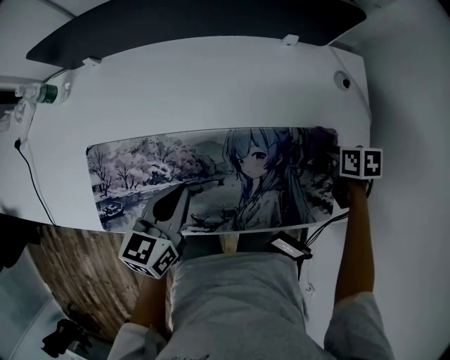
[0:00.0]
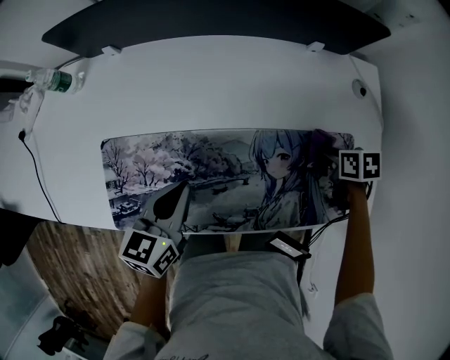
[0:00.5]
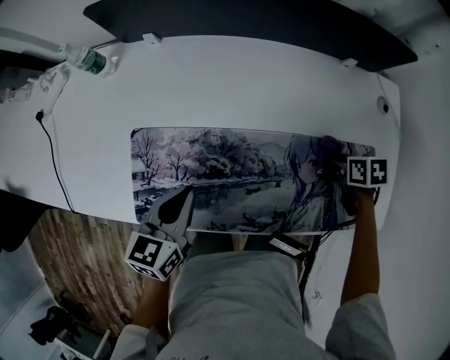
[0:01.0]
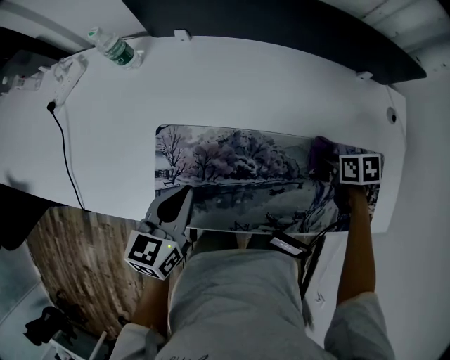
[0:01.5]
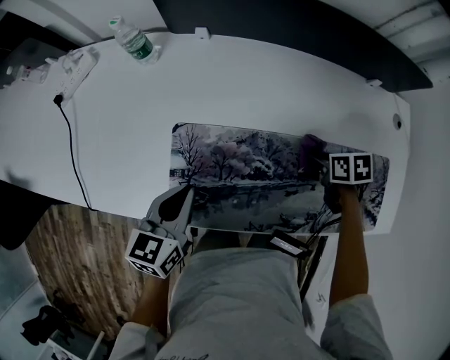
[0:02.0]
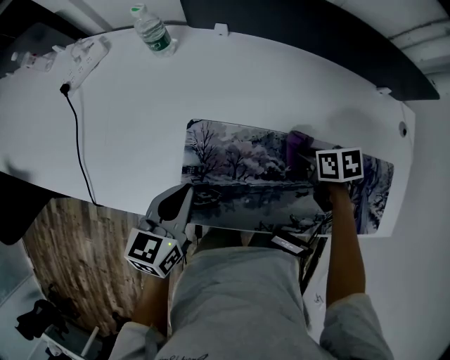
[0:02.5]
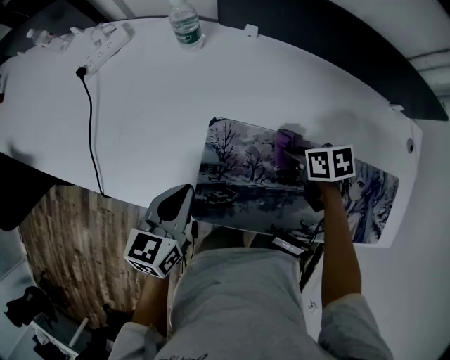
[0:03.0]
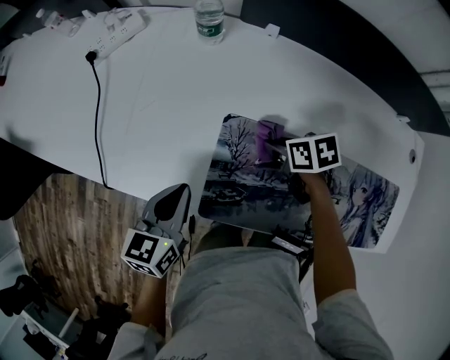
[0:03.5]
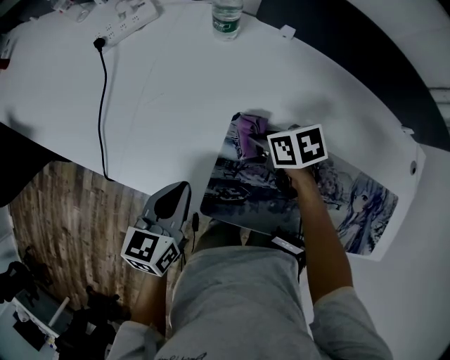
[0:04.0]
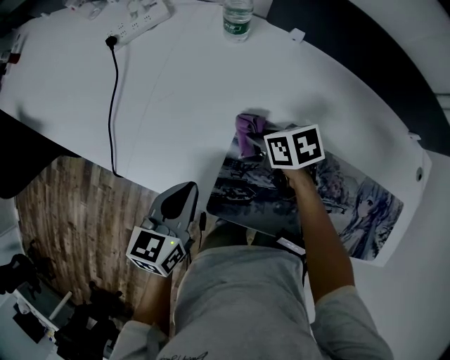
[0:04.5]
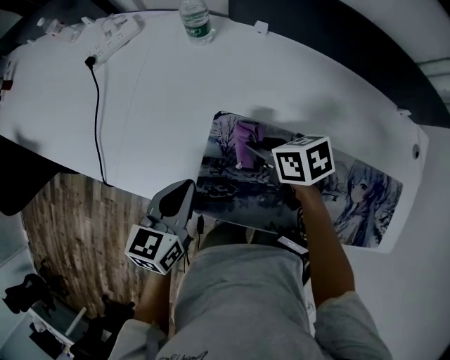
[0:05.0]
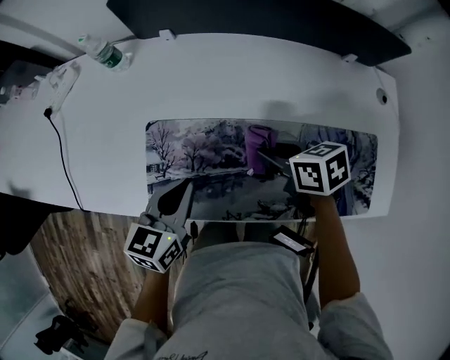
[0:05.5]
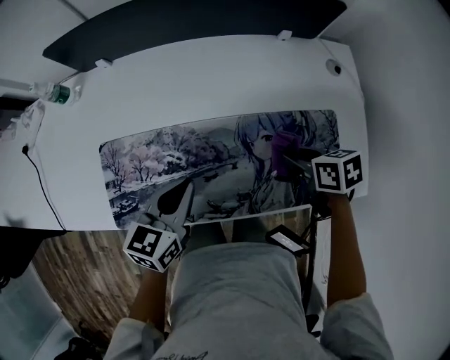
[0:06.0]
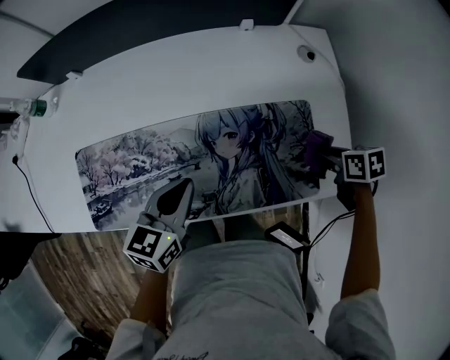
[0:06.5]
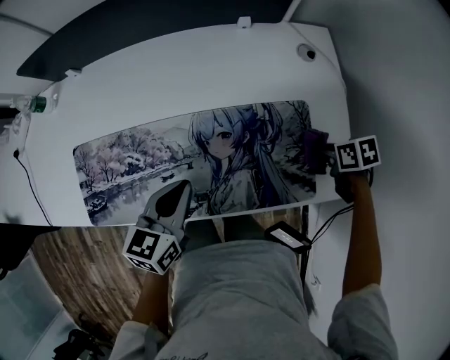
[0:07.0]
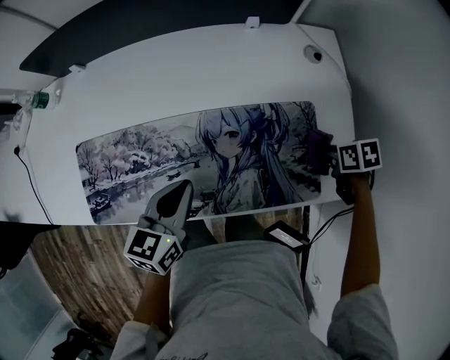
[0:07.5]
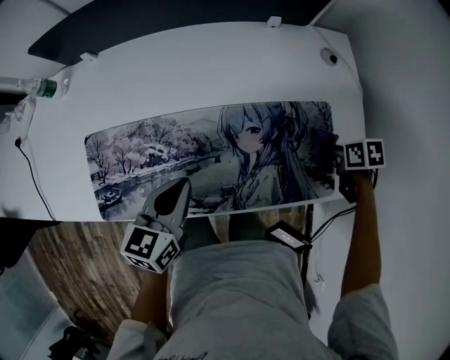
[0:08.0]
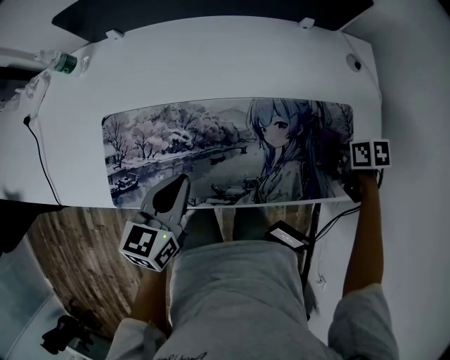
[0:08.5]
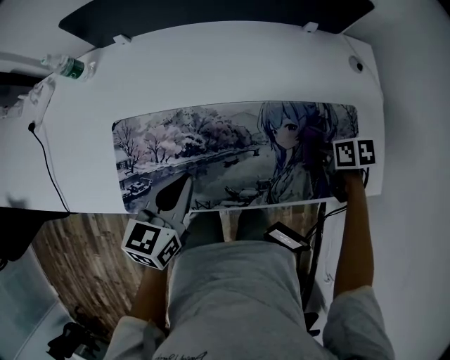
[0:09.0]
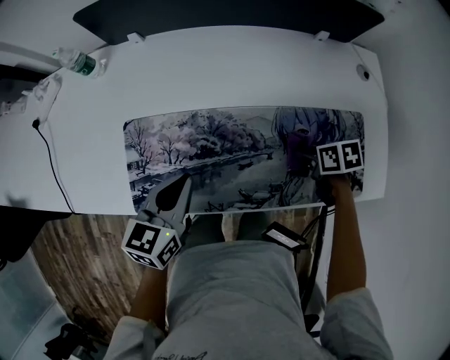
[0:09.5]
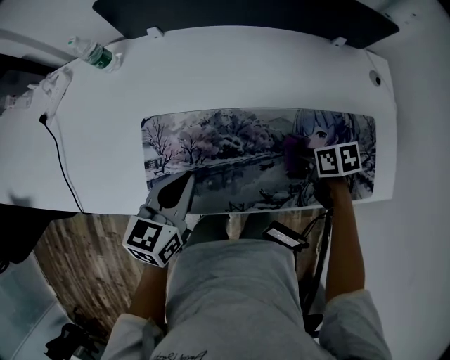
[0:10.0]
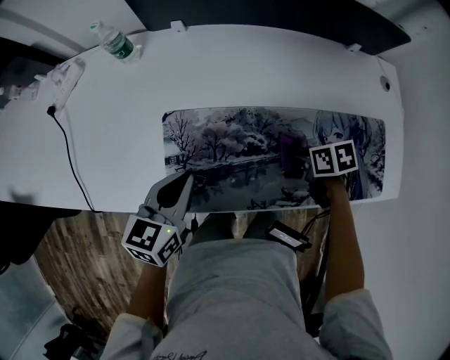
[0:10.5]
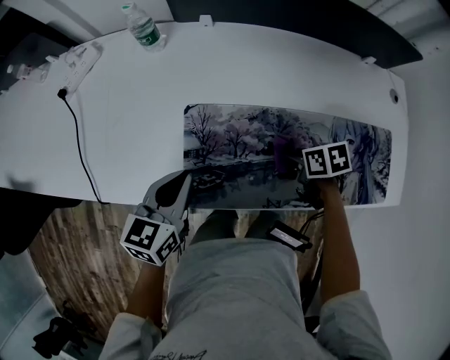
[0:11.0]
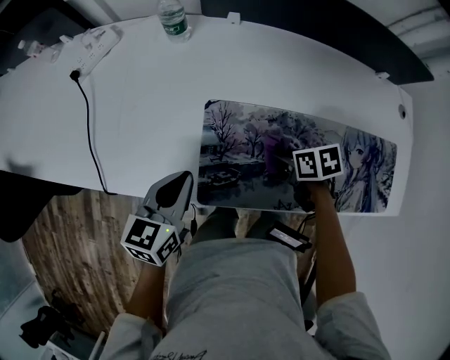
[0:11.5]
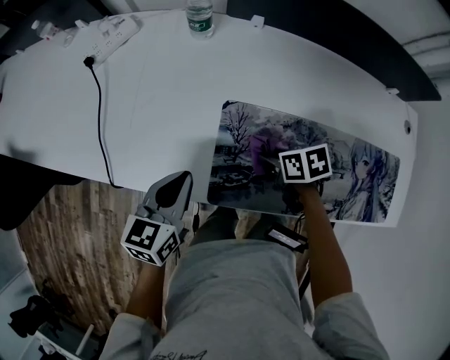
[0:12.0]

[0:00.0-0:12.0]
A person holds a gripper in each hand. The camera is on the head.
0:00.0 to 0:02.0: The two grippers go some 30 cm to the left.
0:02.0 to 0:04.0: The left gripper shifts roughly 15 cm to the left. Meanwhile the right gripper goes about 35 cm to the left and forward, and turns by approximately 30 degrees.
0:04.0 to 0:06.0: The left gripper shifts by approximately 40 cm, and swivels approximately 30 degrees. The right gripper ends up roughly 50 cm from where it was, and swivels roughly 30 degrees.
0:06.0 to 0:08.0: The right gripper shifts approximately 20 cm to the right and downward; the left gripper goes to the right and returns, some 10 cm each way.
0:08.0 to 0:10.0: The left gripper is displaced to the left by roughly 20 cm. Meanwhile the right gripper travels to the left by roughly 30 cm.
0:10.0 to 0:12.0: The two grippers go some 25 cm to the left.

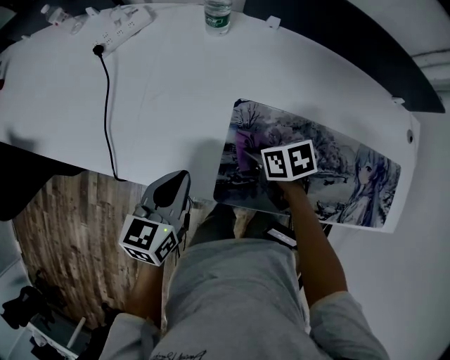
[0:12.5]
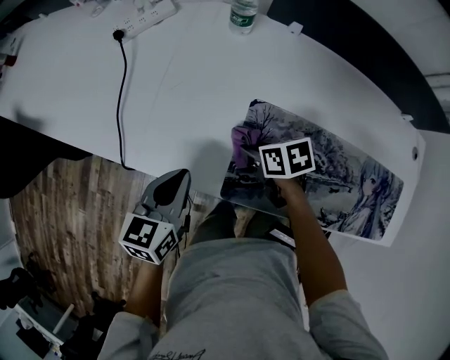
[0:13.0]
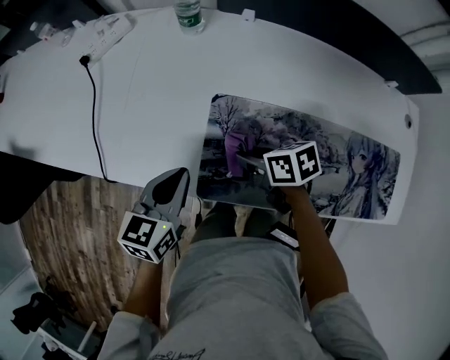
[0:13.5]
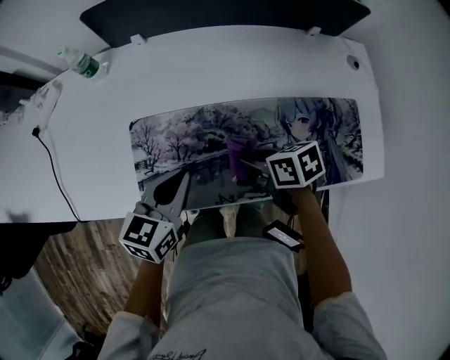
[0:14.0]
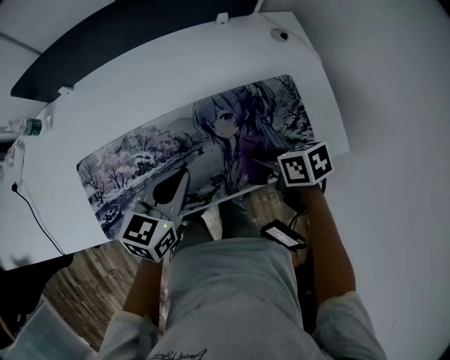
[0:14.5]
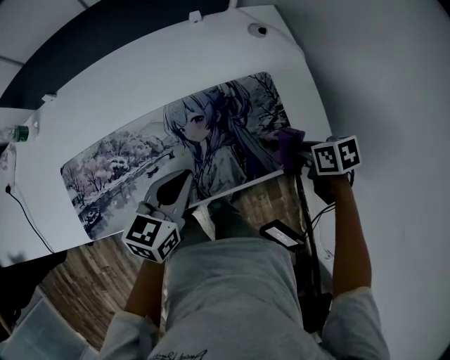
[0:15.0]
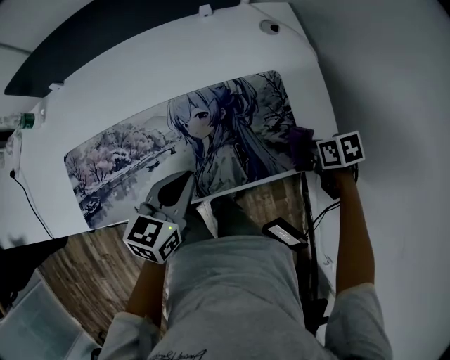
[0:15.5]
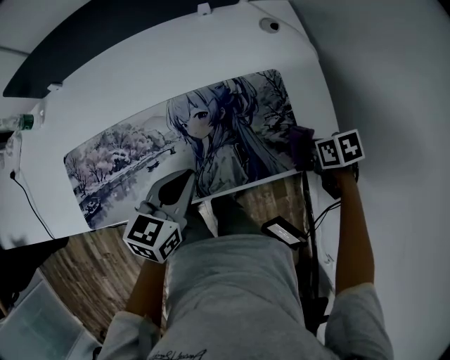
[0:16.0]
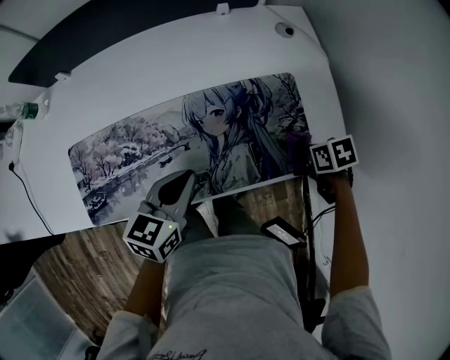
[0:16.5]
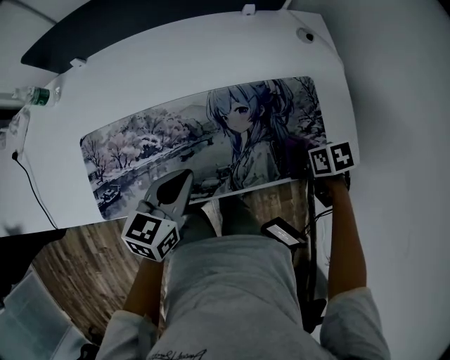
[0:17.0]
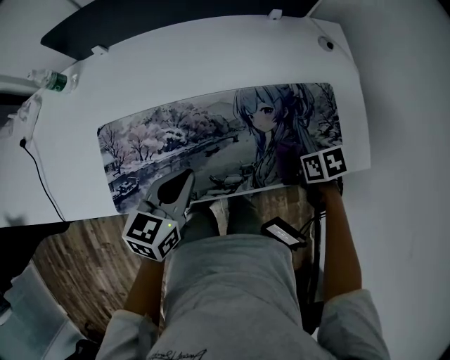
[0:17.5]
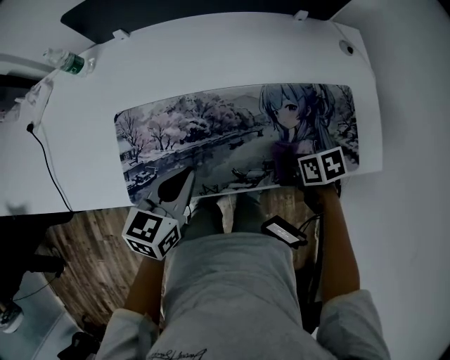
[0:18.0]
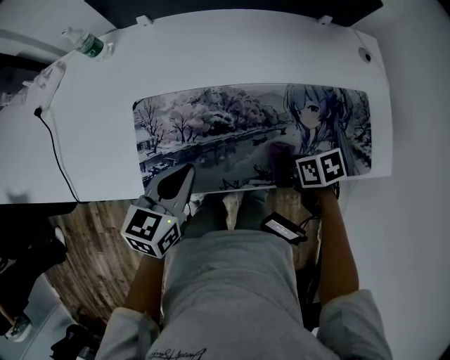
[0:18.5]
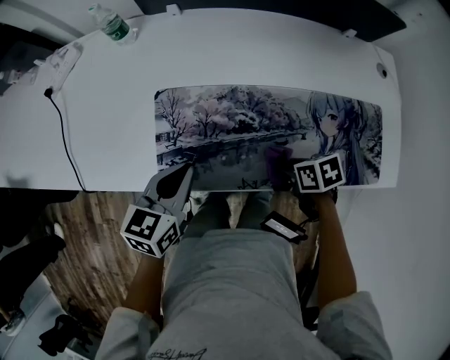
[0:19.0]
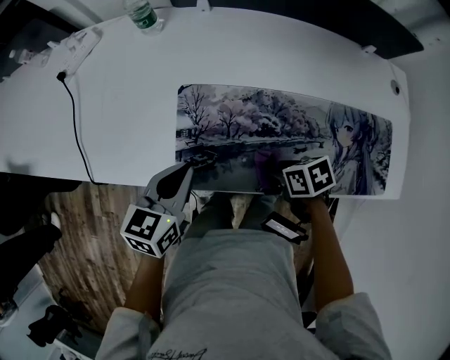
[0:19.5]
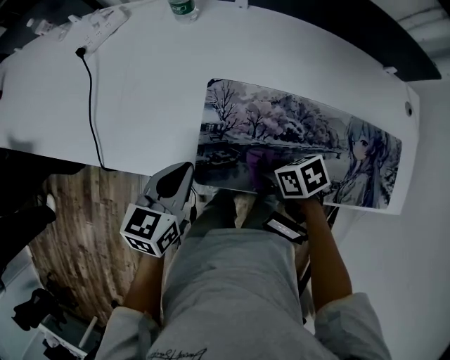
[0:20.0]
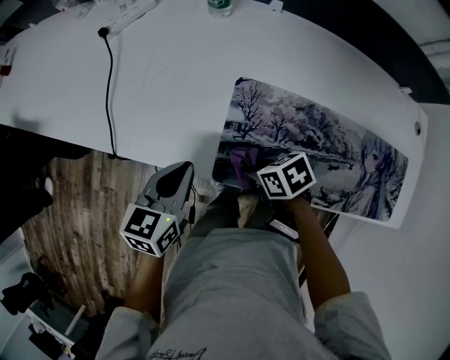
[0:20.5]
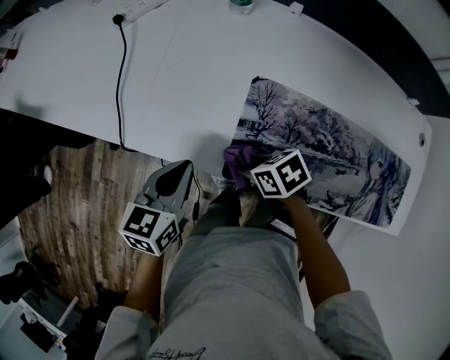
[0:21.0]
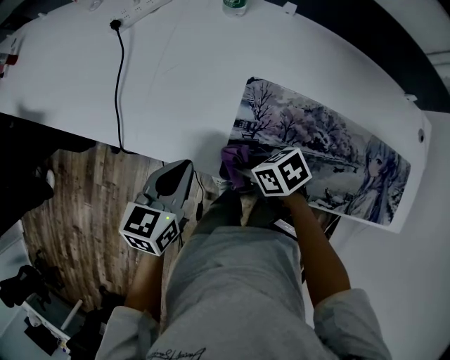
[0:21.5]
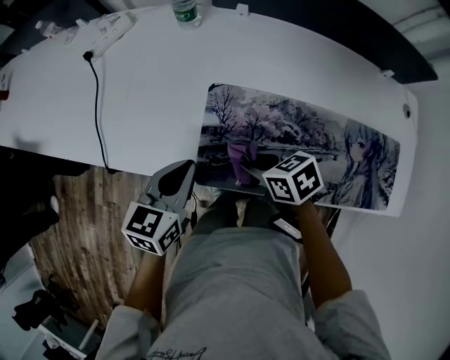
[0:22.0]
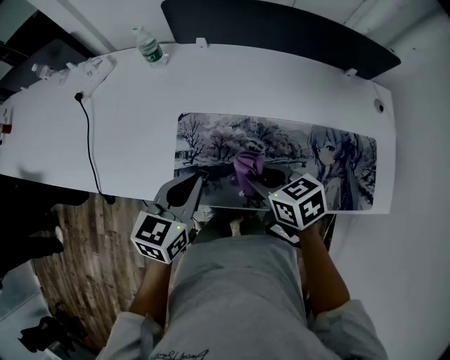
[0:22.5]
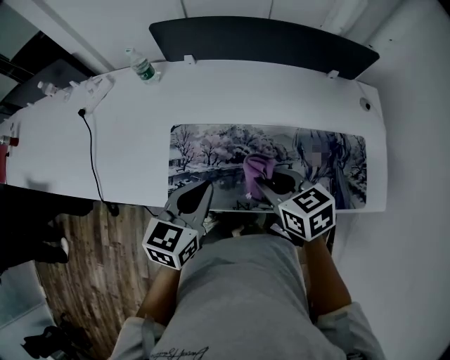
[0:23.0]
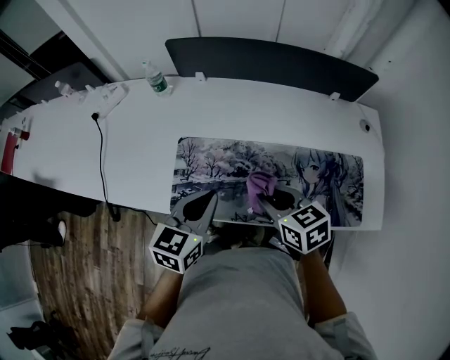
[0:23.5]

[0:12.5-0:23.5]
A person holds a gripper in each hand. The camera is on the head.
0:12.5 to 0:14.5: Both grippers are carried roughly 50 cm. The left gripper turns by roughly 30 degrees. The right gripper turns by approximately 30 degrees.
0:14.5 to 0:16.0: The right gripper travels to the right by approximately 25 cm, while the left gripper moves to the right, some 10 cm.
0:16.0 to 0:18.0: The two grippers go approximately 25 cm to the left.
0:18.0 to 0:20.0: The right gripper travels to the left and forward by approximately 30 cm, and turns by about 20 degrees; the left gripper moves to the left, roughly 25 cm.
0:20.0 to 0:21.5: The left gripper moves to the left, about 10 cm; the right gripper travels to the left and forward by about 15 cm.
0:21.5 to 0:23.5: The right gripper ends up roughly 35 cm from where it was, and swivels roughly 40 degrees; the left gripper changes place by approximately 30 cm.

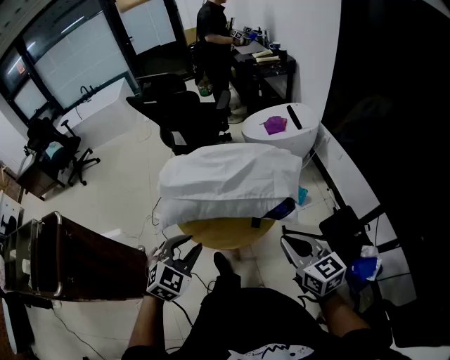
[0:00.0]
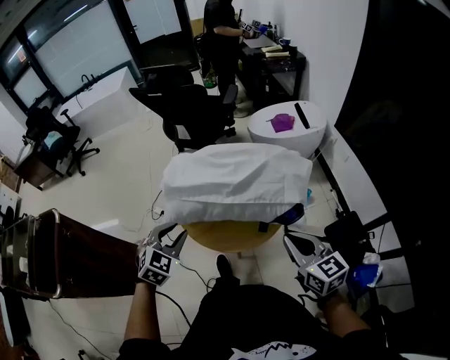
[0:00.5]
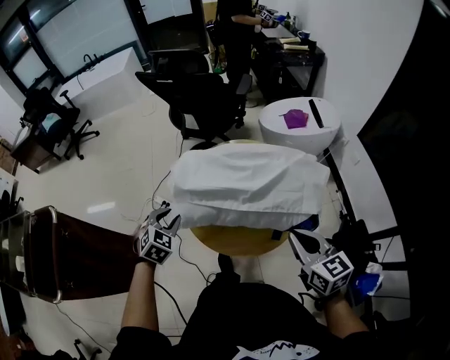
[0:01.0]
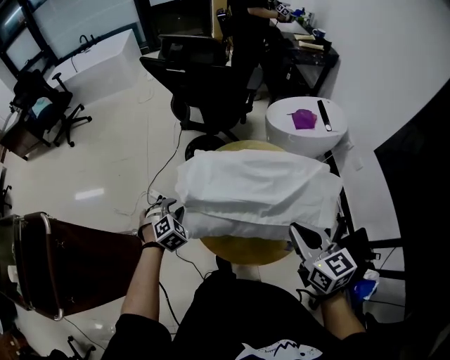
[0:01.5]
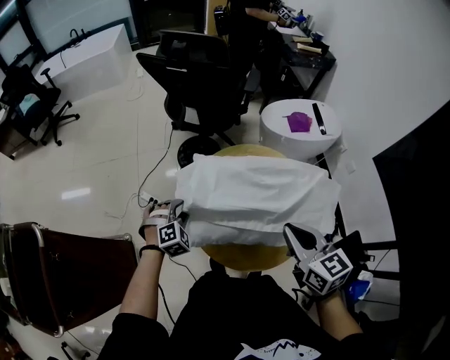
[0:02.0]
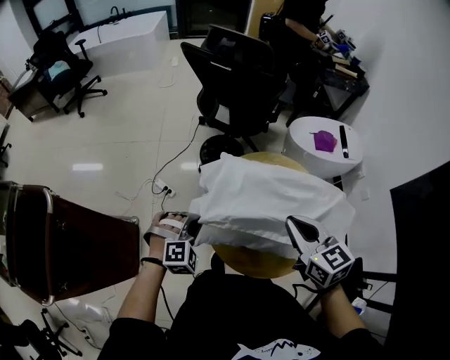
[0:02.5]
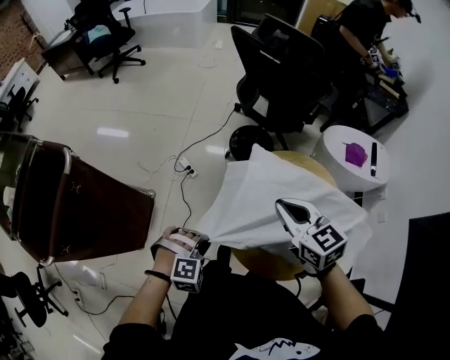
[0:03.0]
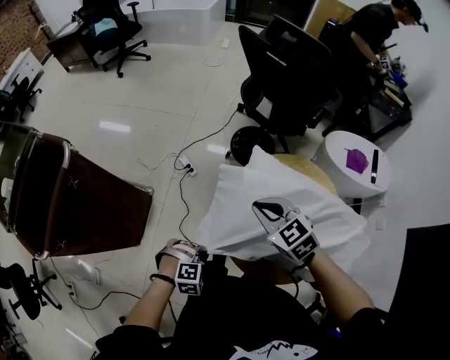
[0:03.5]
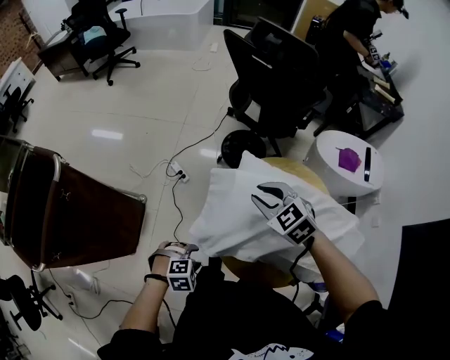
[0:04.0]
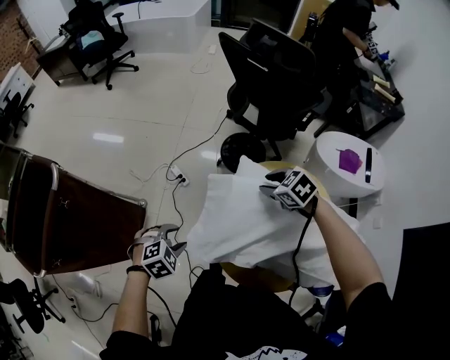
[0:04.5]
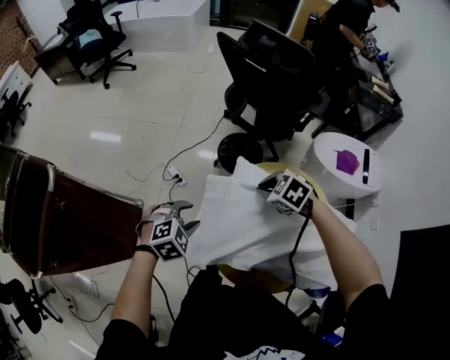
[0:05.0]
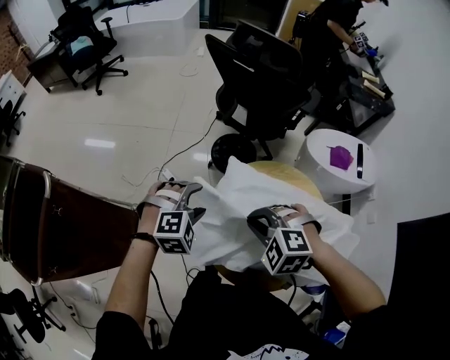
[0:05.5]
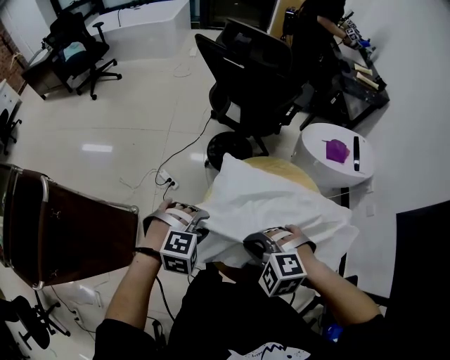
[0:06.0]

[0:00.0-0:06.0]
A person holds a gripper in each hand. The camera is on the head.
0:00.0 to 0:02.0: The right gripper moves forward and to the left, roughly 30 cm. The left gripper travels forward, downward and to the left by some 40 cm, and rotates about 20 degrees.
0:02.0 to 0:04.0: The right gripper moves to the left, forward and downward, roughly 25 cm, rotates approximately 60 degrees, and opens; the left gripper travels backward by approximately 20 cm, rotates approximately 30 degrees, and closes, then reopens.
0:04.0 to 0:06.0: The left gripper ends up approximately 20 cm from where it was, and rotates some 20 degrees; the right gripper reaches about 5 cm downward, then returns, swivels about 30 degrees, and closes its fingers.
